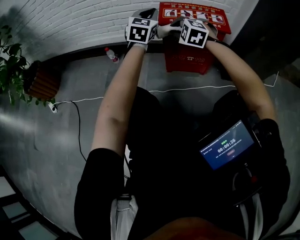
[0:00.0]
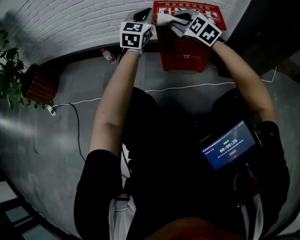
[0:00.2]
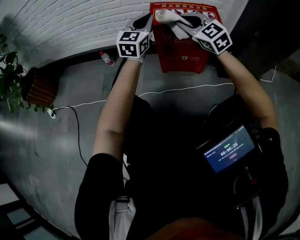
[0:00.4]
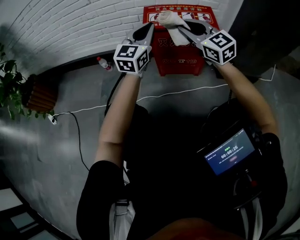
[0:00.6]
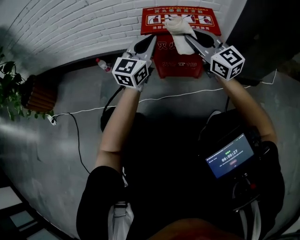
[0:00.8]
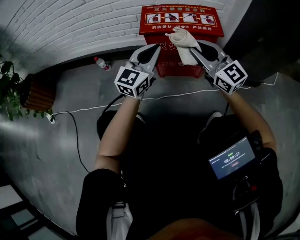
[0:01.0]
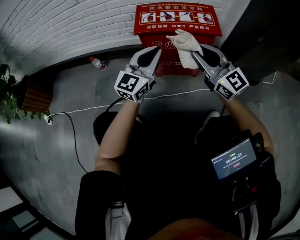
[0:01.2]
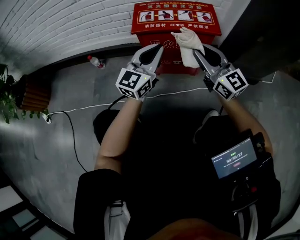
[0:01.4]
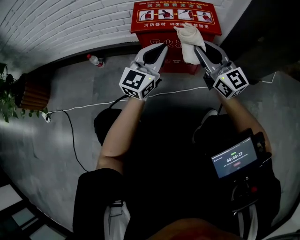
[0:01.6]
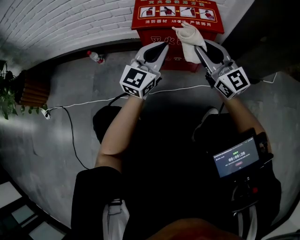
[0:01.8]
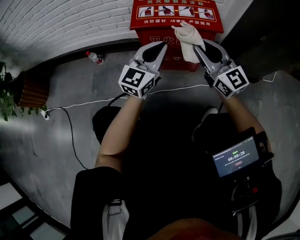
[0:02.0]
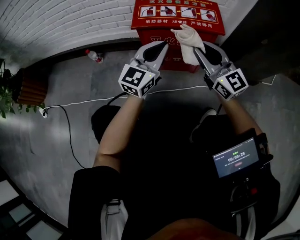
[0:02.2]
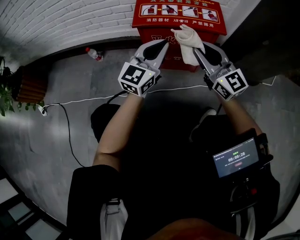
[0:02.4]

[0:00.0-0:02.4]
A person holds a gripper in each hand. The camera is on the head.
0:00.0 to 0:01.2: The left gripper travels backward, to the right and downward by about 15 cm, and turns by approximately 30 degrees. Meanwhile the right gripper heads to the right and backward, covering about 15 cm, and tips its fingers upward by some 50 degrees.
0:01.2 to 0:02.4: The grippers make only small movements.

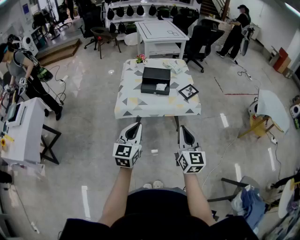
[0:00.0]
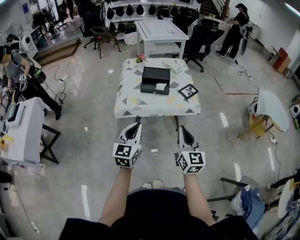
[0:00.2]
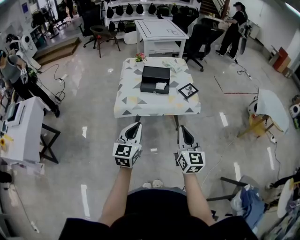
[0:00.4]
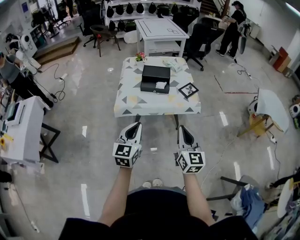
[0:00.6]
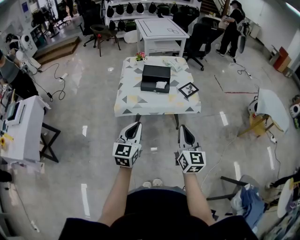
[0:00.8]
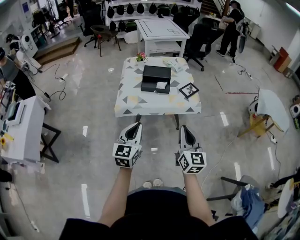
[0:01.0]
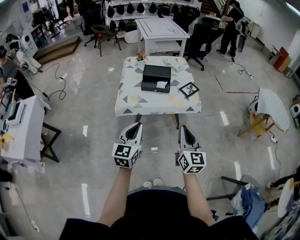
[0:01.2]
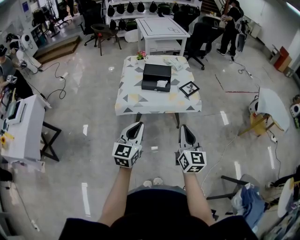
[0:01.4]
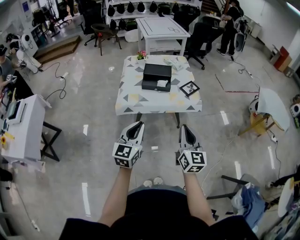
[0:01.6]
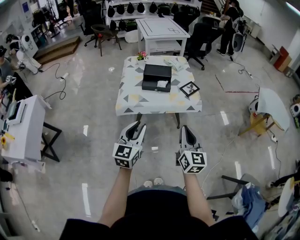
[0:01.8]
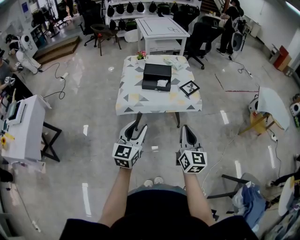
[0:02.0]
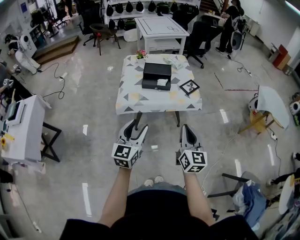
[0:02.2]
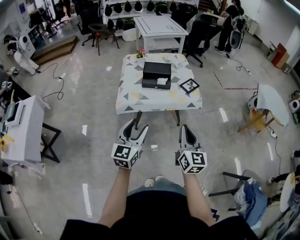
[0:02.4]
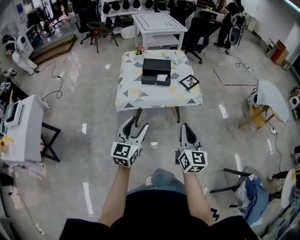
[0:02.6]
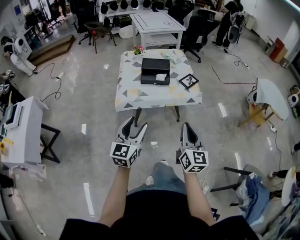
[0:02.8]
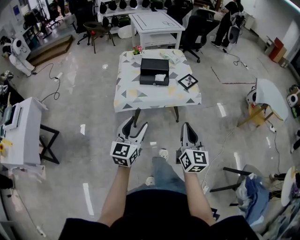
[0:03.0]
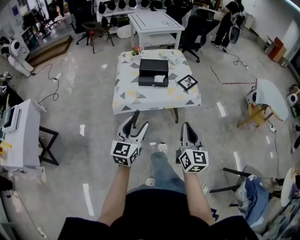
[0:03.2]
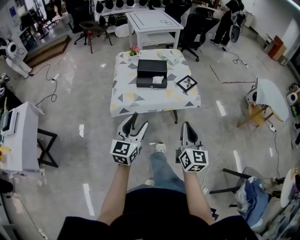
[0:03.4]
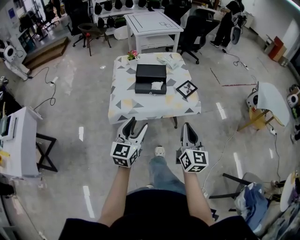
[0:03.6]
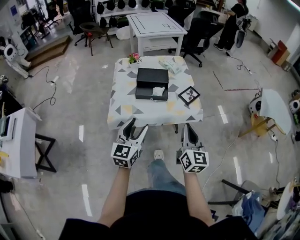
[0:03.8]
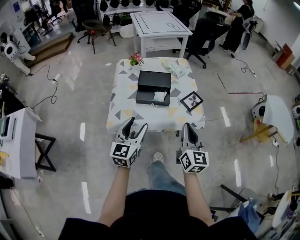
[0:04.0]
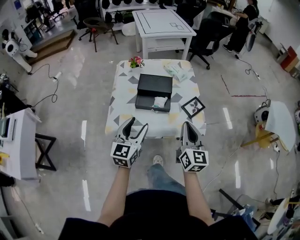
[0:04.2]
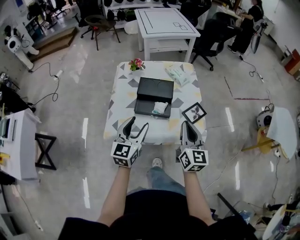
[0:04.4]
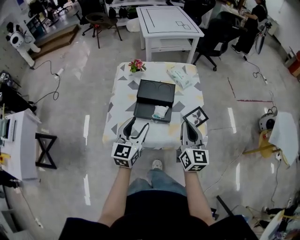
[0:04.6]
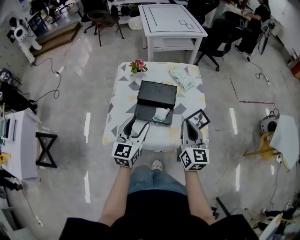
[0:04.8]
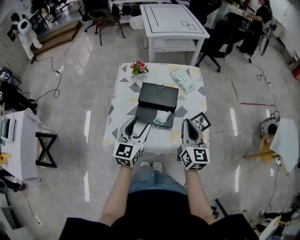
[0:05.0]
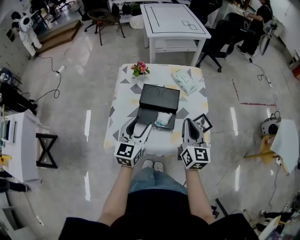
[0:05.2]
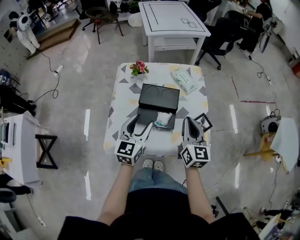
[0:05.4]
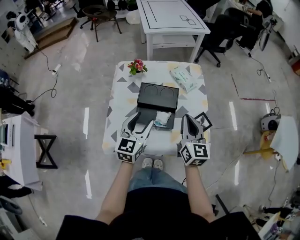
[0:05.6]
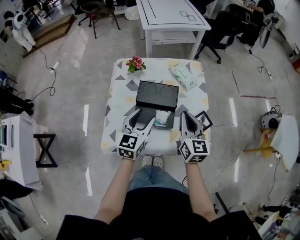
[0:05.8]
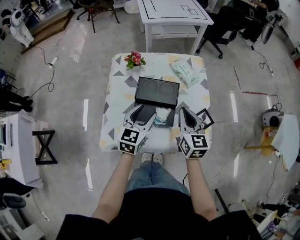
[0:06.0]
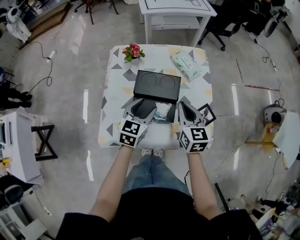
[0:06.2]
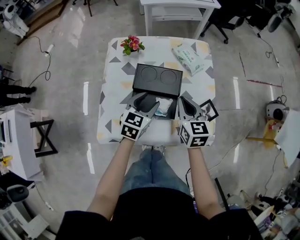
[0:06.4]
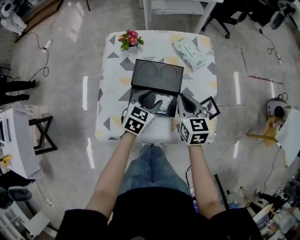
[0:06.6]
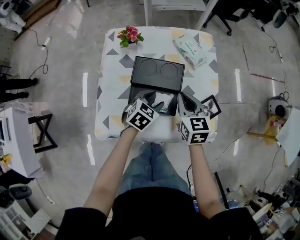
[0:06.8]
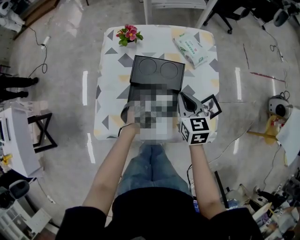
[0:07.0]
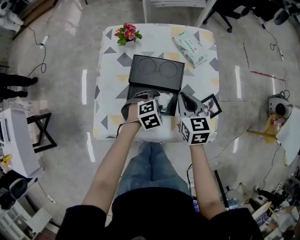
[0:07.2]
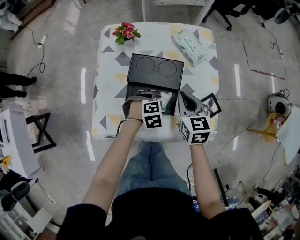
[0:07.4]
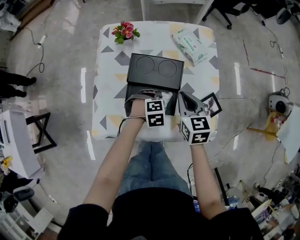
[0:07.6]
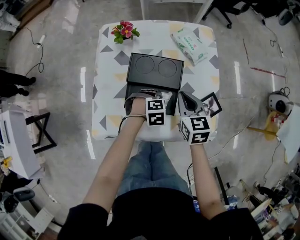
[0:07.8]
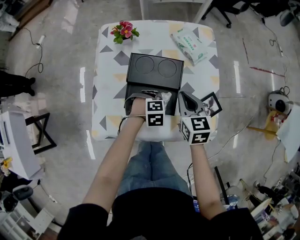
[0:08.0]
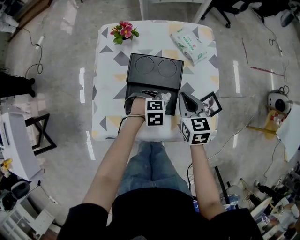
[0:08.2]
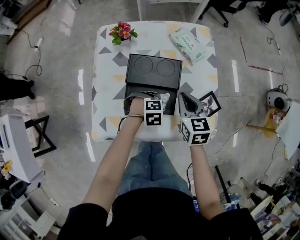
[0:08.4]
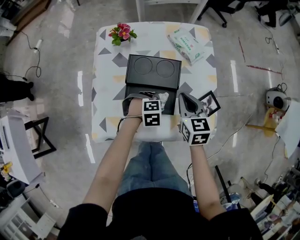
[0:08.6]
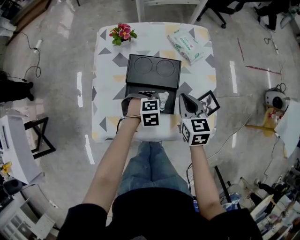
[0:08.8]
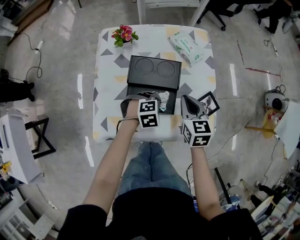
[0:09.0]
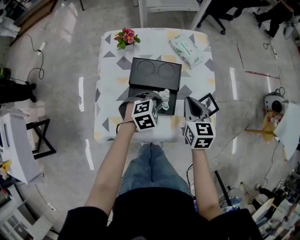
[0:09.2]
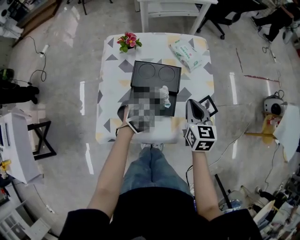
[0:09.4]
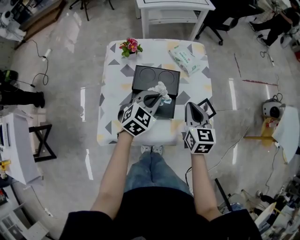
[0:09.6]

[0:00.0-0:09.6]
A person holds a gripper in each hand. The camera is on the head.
0:00.0 to 0:01.6: The grippers make only small movements.
0:01.6 to 0:03.2: The left gripper opens its fingers.
0:03.2 to 0:04.8: Both grippers travel together forward, approximately 40 cm.
0:04.8 to 0:06.4: The grippers both shift forward and downward by approximately 20 cm. The left gripper turns by about 30 degrees, while the right gripper rotates roughly 20 degrees.
0:06.4 to 0:08.0: The left gripper heads downward and to the right, covering roughly 20 cm, tilts its fingers roughly 40 degrees downward, and closes up. Meanwhile the right gripper shifts roughly 5 cm downward.
0:08.0 to 0:09.6: The right gripper is displaced upward by approximately 10 cm. Meanwhile the left gripper is displaced upward by roughly 20 cm, and tips its fingers upward by approximately 40 degrees.

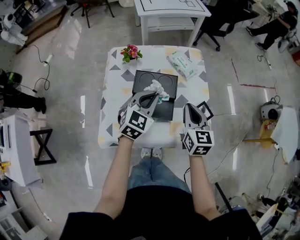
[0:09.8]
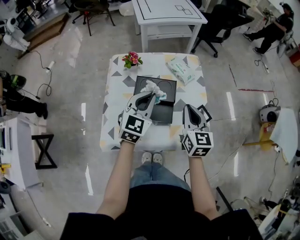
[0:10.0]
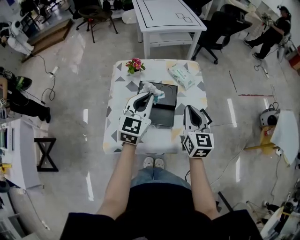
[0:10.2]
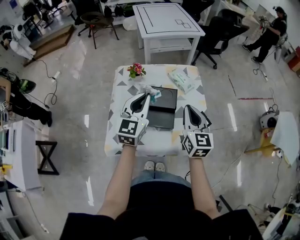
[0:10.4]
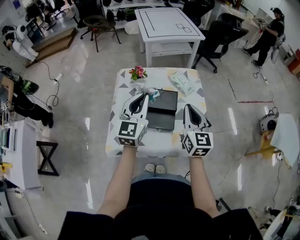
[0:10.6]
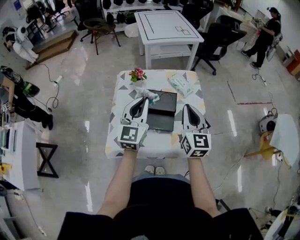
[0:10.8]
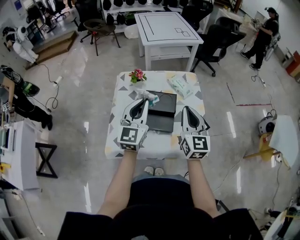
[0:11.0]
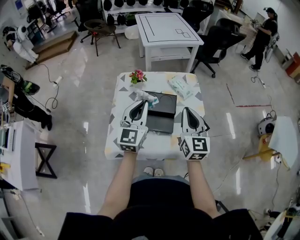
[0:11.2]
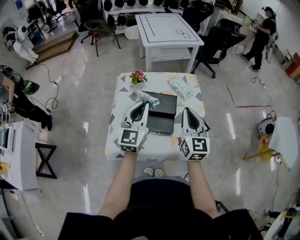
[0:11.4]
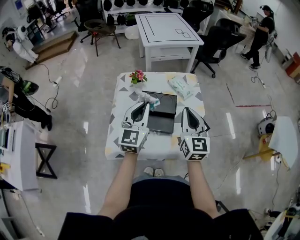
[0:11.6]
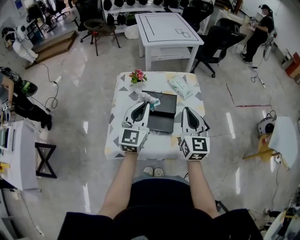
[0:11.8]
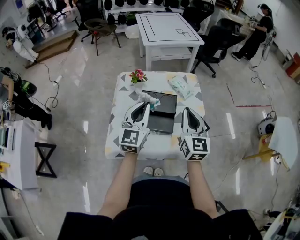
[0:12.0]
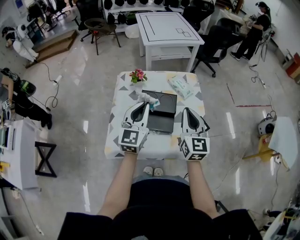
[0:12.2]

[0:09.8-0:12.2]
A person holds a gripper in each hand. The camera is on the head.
0:09.8 to 0:11.0: The right gripper goes some 10 cm upward, and changes its angle by some 20 degrees. Meanwhile the left gripper moves upward, backward and to the left, about 15 cm, and changes its angle by roughly 30 degrees.
0:11.0 to 0:12.2: Both grippers stay about where they are.

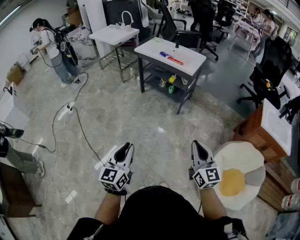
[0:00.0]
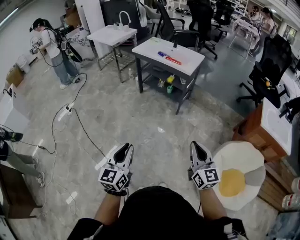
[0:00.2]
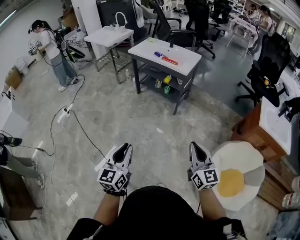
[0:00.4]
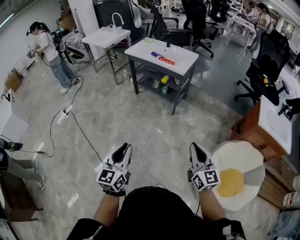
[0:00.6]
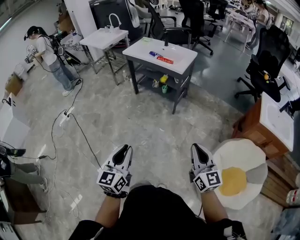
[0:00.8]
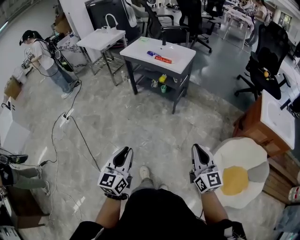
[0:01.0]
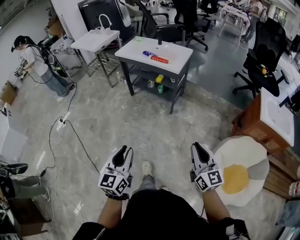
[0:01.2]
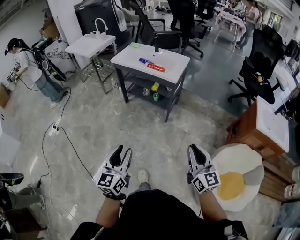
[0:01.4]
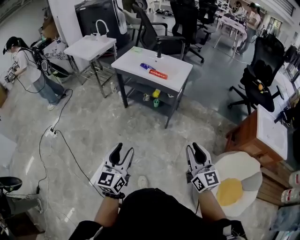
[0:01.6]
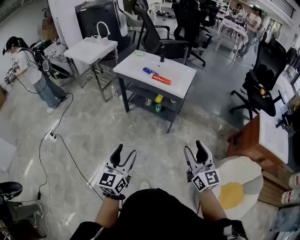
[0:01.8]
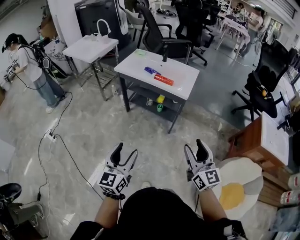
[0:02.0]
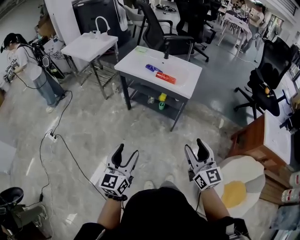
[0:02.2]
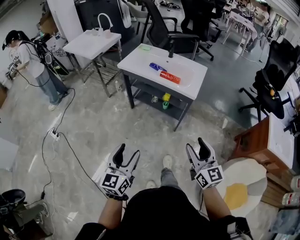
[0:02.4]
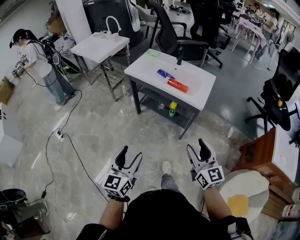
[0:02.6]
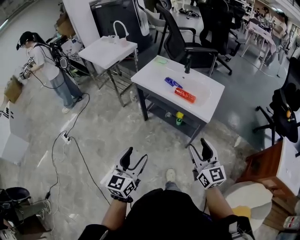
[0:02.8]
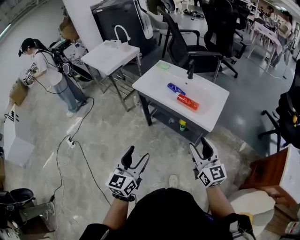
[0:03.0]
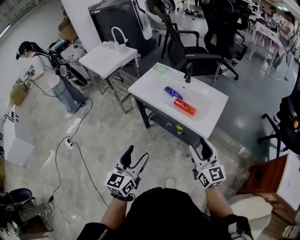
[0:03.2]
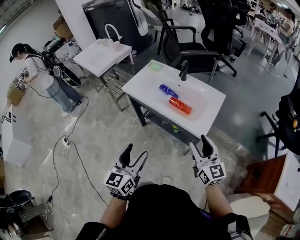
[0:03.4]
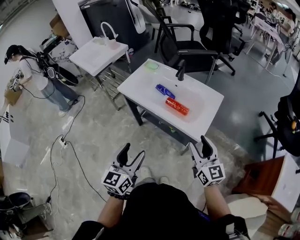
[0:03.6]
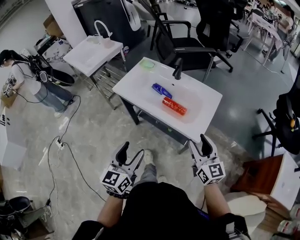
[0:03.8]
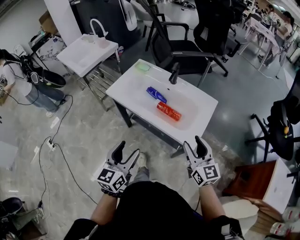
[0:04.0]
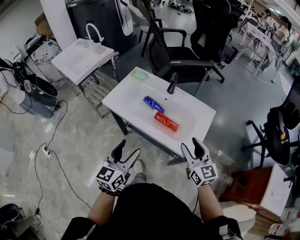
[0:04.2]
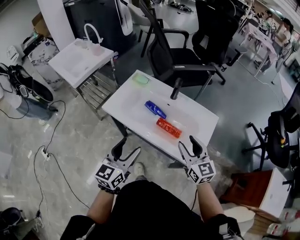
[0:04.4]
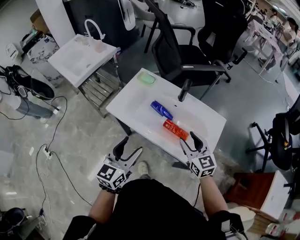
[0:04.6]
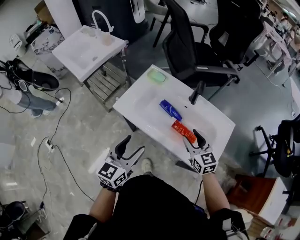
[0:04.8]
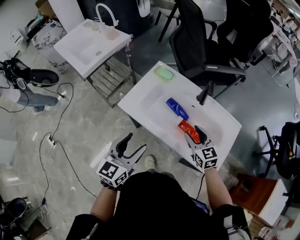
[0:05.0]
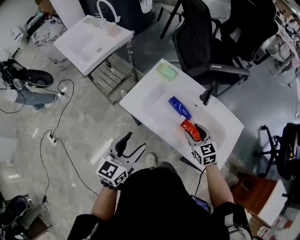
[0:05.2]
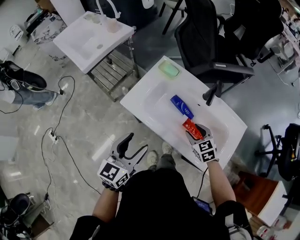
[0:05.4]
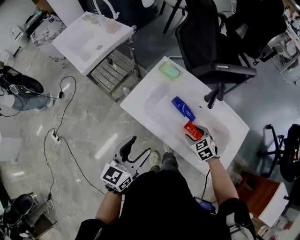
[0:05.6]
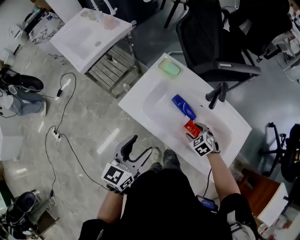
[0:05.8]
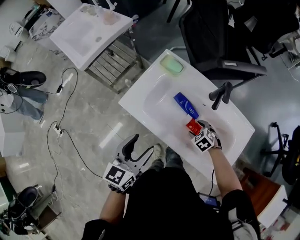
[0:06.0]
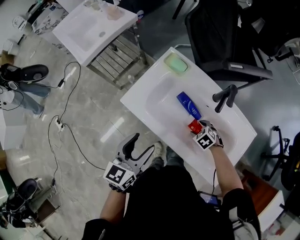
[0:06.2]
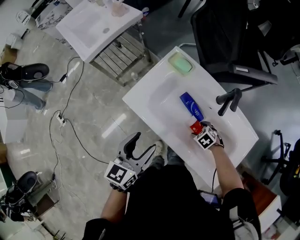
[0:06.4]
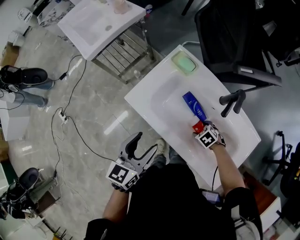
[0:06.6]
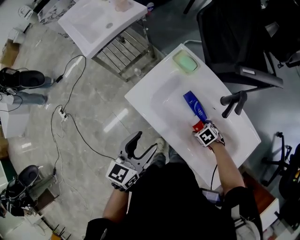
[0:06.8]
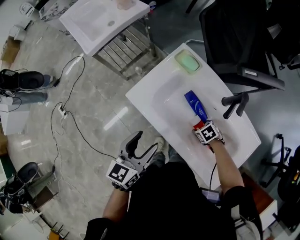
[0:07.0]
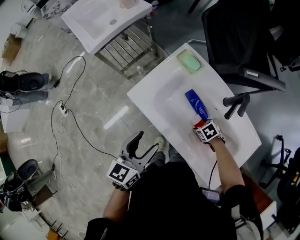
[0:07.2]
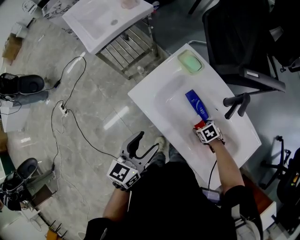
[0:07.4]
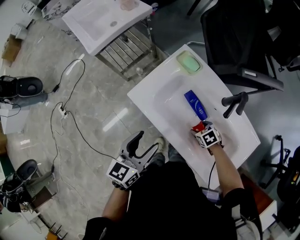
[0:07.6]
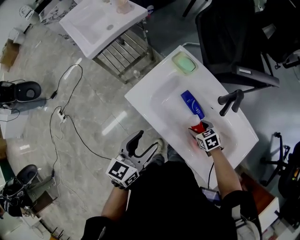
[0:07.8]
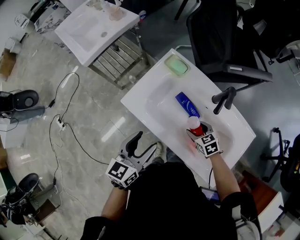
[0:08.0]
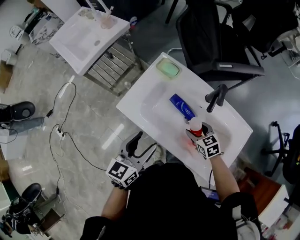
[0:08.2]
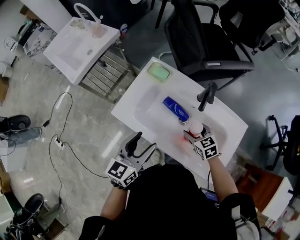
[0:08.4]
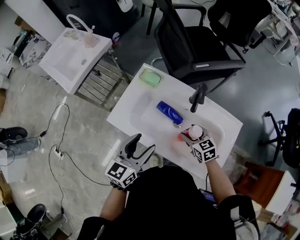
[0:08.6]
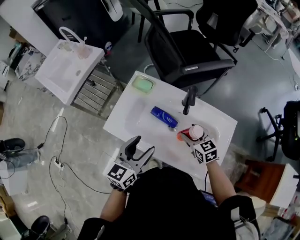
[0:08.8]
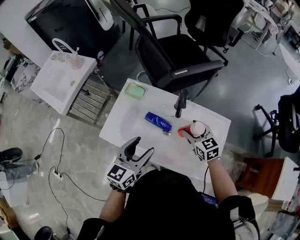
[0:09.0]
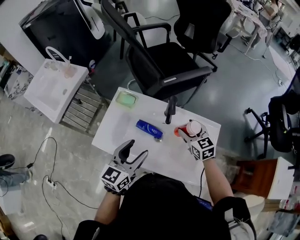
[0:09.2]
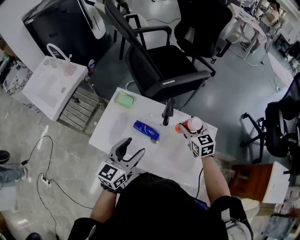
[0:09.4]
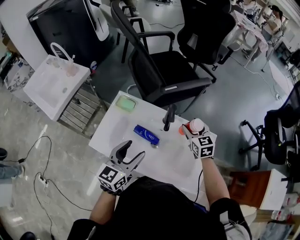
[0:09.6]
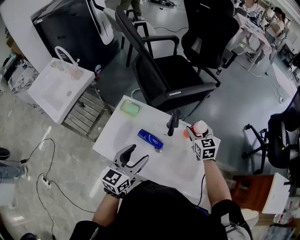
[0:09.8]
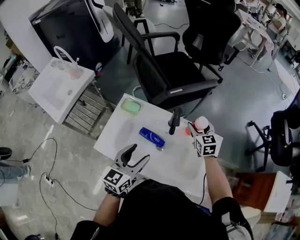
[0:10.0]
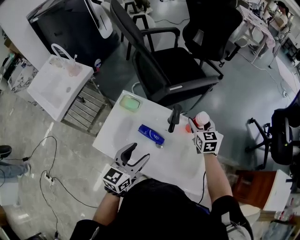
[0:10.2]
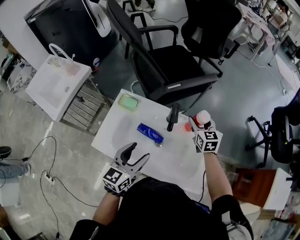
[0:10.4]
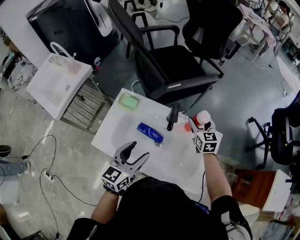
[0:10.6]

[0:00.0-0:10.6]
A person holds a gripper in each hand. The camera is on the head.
0:00.0 to 0:01.6: Both grippers move forward, roughly 20 cm. The left gripper opens.
0:01.6 to 0:03.0: Both grippers move forward, roughly 30 cm. The right gripper opens up.
0:03.0 to 0:04.6: The two grippers go roughly 30 cm forward.
0:04.6 to 0:06.0: The right gripper goes some 25 cm downward, and angles its fingers downward, by roughly 50 degrees. Meanwhile the left gripper heads forward and downward, covering roughly 10 cm.
0:06.0 to 0:07.6: The grippers move only a little.
0:07.6 to 0:09.0: The left gripper shifts by some 15 cm, and turns by about 30 degrees. Meanwhile the right gripper moves upward, about 20 cm, and points its fingers some 40 degrees further upward.
0:09.0 to 0:10.6: The right gripper goes roughly 15 cm forward and to the right.
